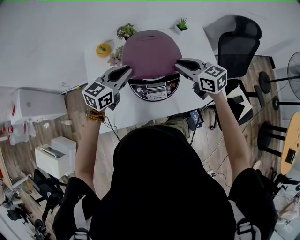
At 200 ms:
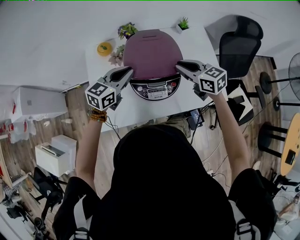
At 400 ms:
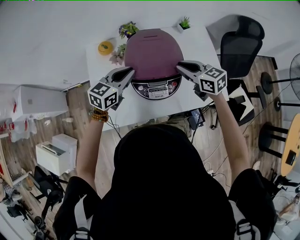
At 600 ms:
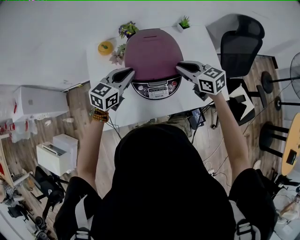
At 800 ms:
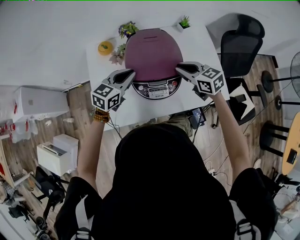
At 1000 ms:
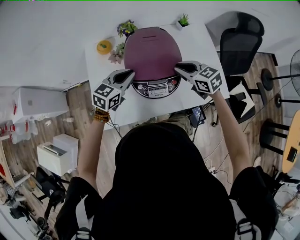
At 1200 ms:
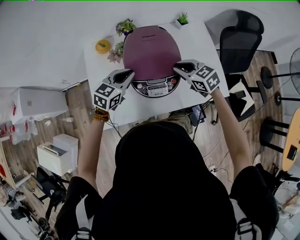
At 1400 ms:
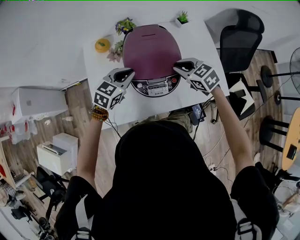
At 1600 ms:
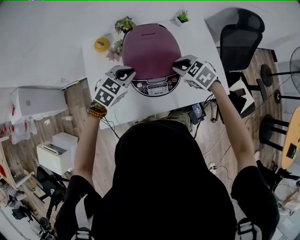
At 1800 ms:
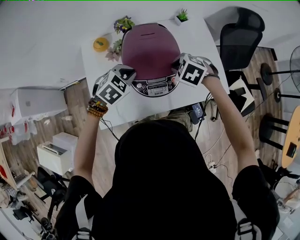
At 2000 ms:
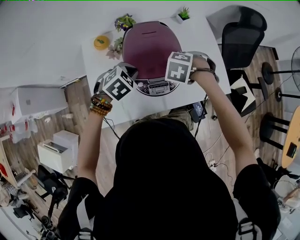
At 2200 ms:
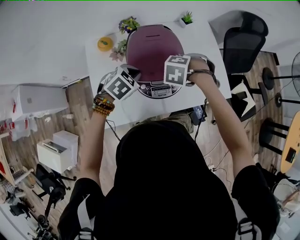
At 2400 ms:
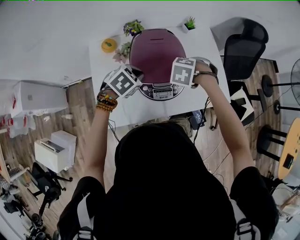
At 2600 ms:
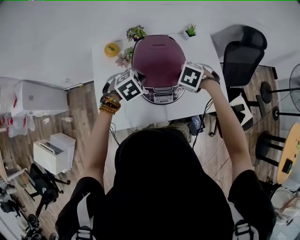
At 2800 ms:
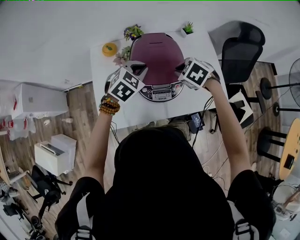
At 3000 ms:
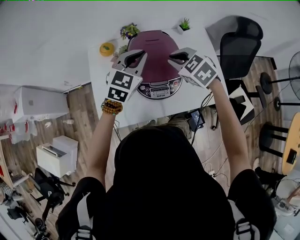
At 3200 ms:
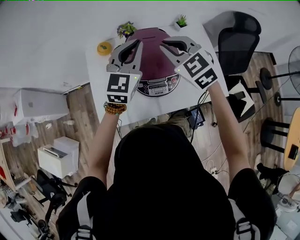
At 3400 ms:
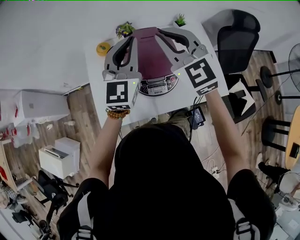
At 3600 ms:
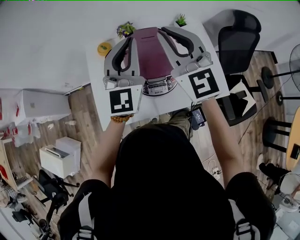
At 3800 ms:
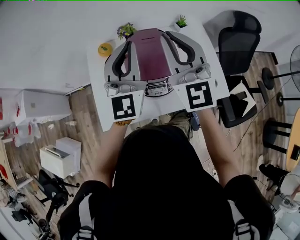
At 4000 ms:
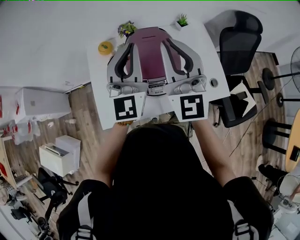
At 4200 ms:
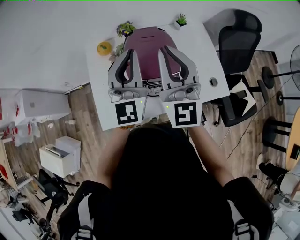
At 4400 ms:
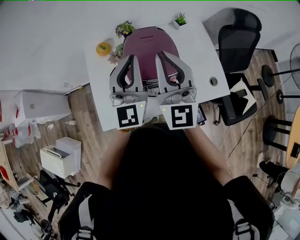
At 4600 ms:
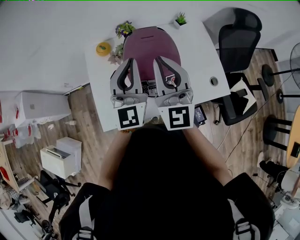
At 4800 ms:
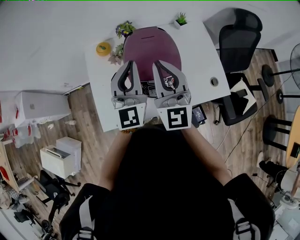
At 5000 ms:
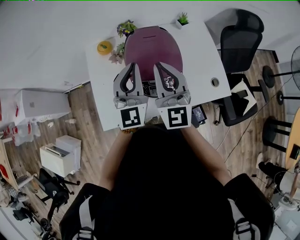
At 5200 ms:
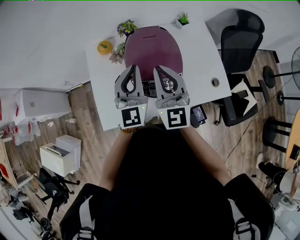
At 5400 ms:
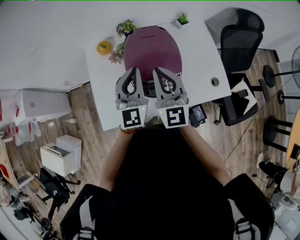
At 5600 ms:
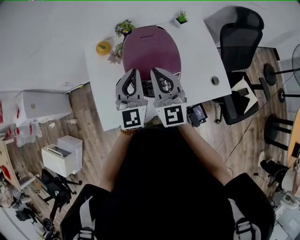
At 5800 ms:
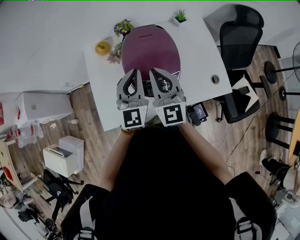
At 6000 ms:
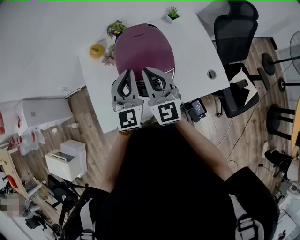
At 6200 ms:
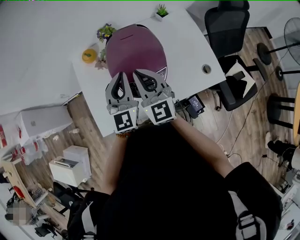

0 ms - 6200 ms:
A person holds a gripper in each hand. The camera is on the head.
0 ms - 1600 ms: The grippers both shift downward by approximately 5 cm. The right gripper rotates roughly 40 degrees. The left gripper rotates some 30 degrees.
1600 ms - 3200 ms: The two grippers go some 15 cm upward. The right gripper changes its angle by roughly 30 degrees. The left gripper tilts its fingers roughly 40 degrees upward.
3200 ms - 4600 ms: The left gripper travels backward by about 5 cm, moves about 10 cm upward and comes back, and rotates approximately 20 degrees. Meanwhile the right gripper is displaced backward and upward by approximately 10 cm, and tips its fingers upward by roughly 40 degrees.
4600 ms - 6200 ms: Both grippers move downward, about 10 cm.

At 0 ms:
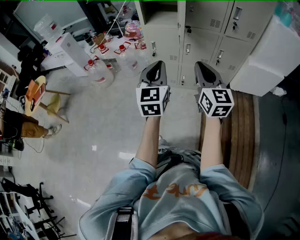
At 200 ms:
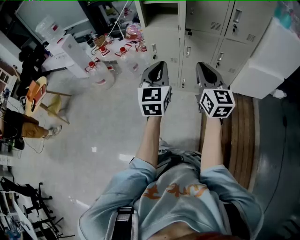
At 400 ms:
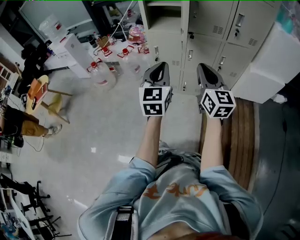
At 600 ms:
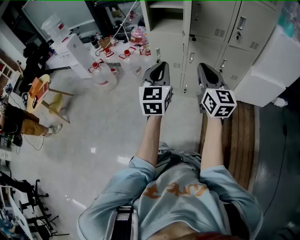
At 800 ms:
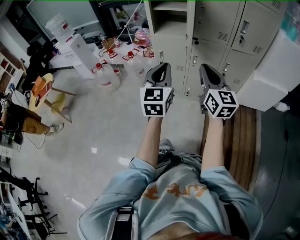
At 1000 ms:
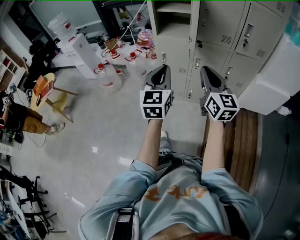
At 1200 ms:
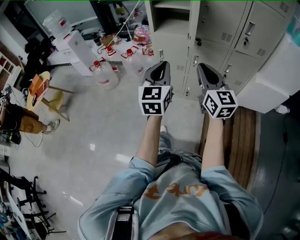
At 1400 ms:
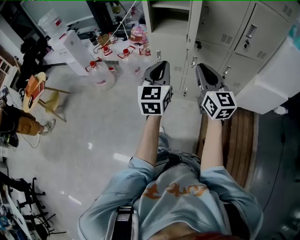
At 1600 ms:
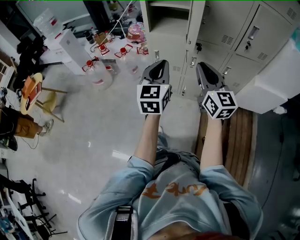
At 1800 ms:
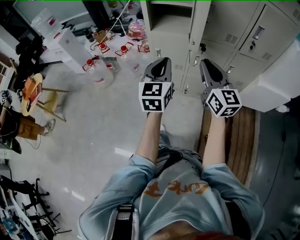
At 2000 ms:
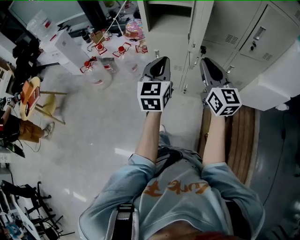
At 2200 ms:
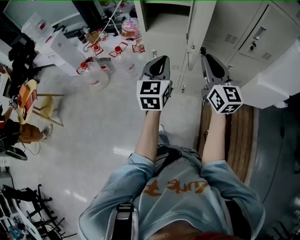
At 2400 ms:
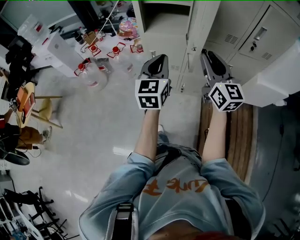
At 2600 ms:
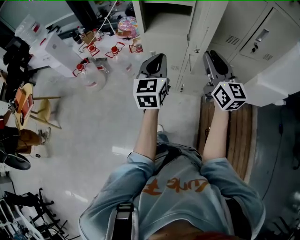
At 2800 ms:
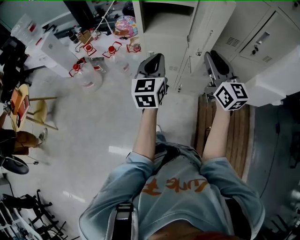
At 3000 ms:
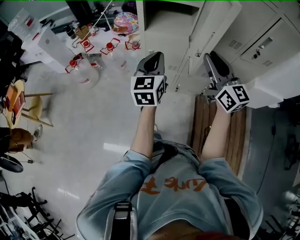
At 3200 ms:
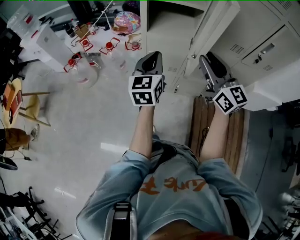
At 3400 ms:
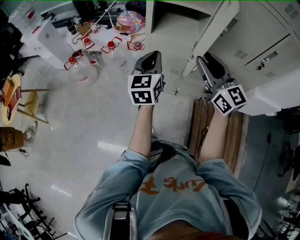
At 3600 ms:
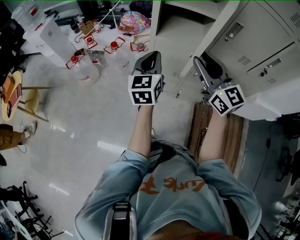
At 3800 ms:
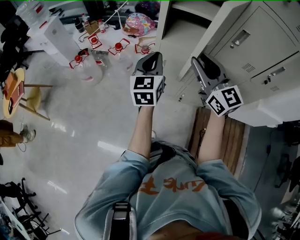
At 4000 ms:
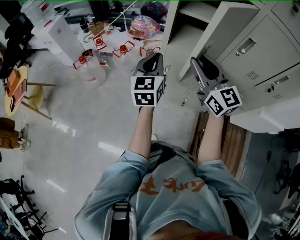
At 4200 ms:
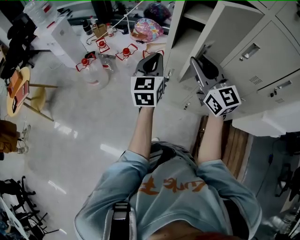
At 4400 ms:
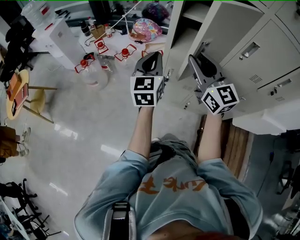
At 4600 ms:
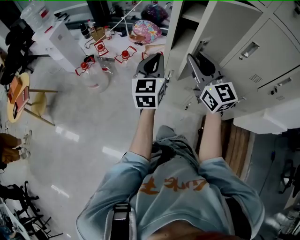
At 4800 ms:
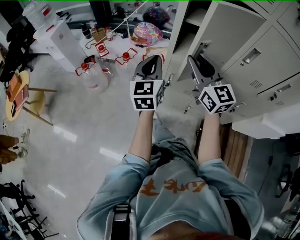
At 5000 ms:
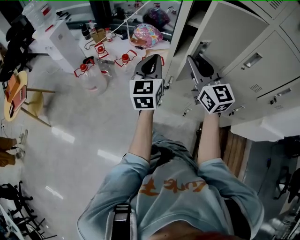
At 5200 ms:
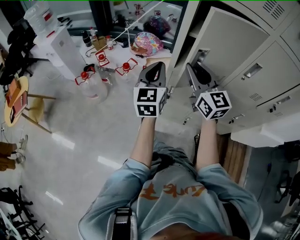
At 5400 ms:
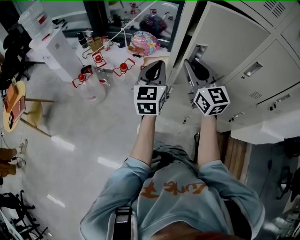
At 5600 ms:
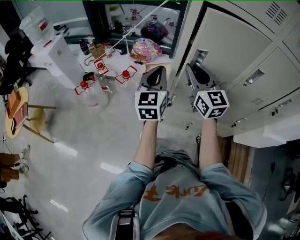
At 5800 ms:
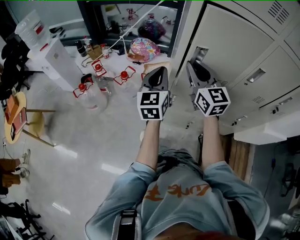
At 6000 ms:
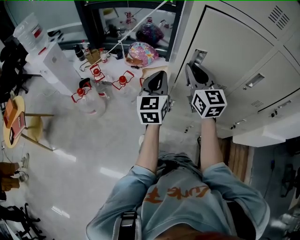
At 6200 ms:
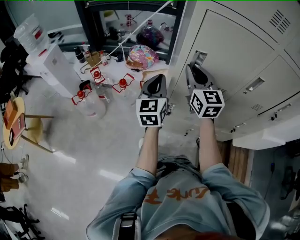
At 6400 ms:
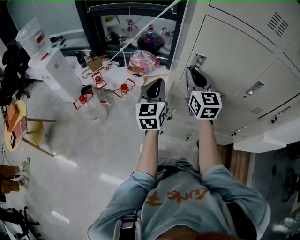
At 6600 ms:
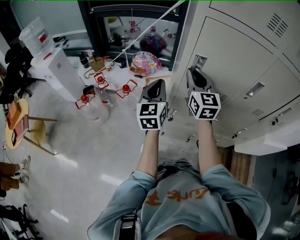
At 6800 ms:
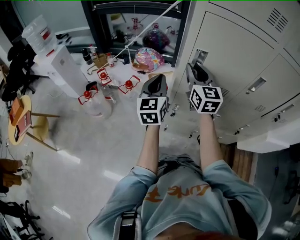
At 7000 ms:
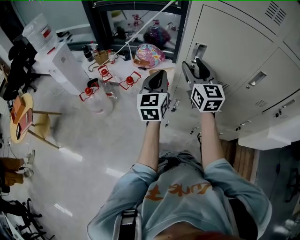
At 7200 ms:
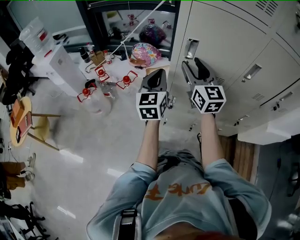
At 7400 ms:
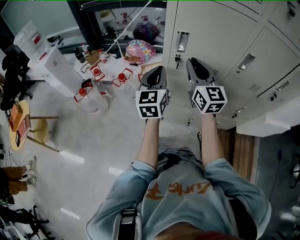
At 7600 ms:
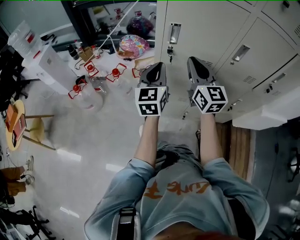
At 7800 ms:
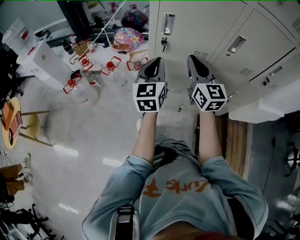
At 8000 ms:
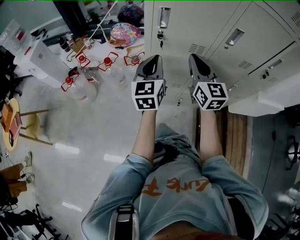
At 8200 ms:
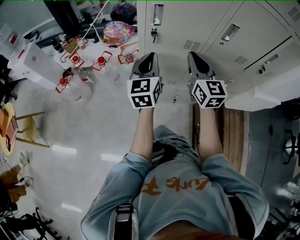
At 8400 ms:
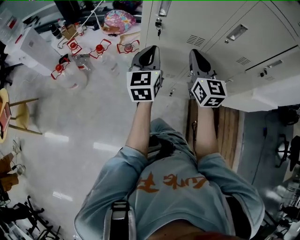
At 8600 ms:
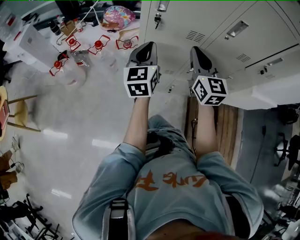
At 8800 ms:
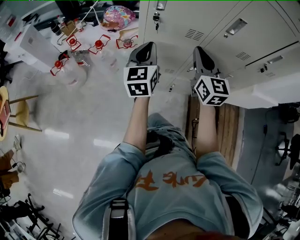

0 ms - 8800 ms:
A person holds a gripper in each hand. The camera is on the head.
0 ms - 1400 ms: Both grippers move forward, about 10 cm.
1400 ms - 3000 ms: Both grippers travel together forward, some 20 cm.
3000 ms - 4400 ms: The left gripper moves forward and to the left, roughly 15 cm. The right gripper goes some 20 cm to the left and forward.
4400 ms - 5800 ms: The grippers both shift forward by about 10 cm.
5800 ms - 7400 ms: The right gripper moves to the right, roughly 5 cm, and opens, then closes once more.
7400 ms - 8800 ms: The right gripper moves to the right, backward and downward, some 15 cm. The left gripper shifts some 10 cm to the right and downward.

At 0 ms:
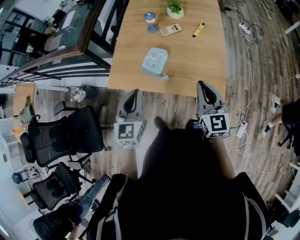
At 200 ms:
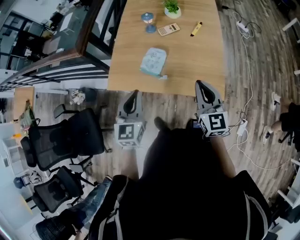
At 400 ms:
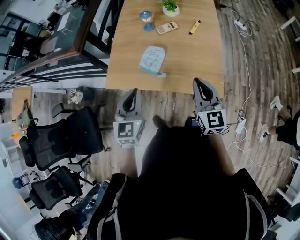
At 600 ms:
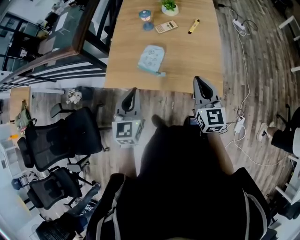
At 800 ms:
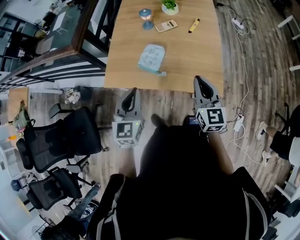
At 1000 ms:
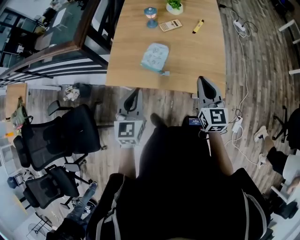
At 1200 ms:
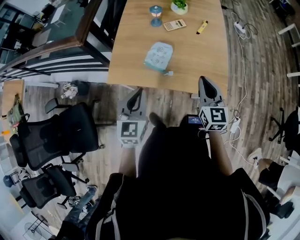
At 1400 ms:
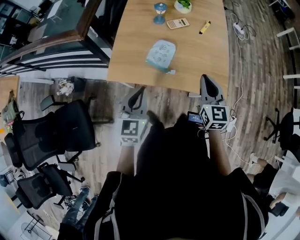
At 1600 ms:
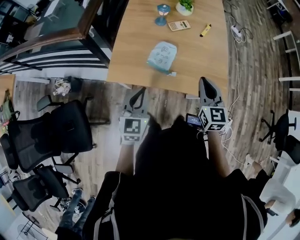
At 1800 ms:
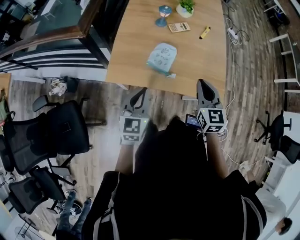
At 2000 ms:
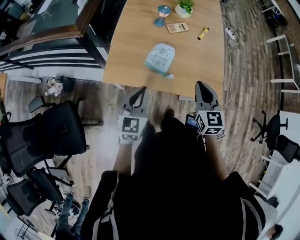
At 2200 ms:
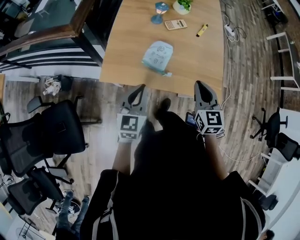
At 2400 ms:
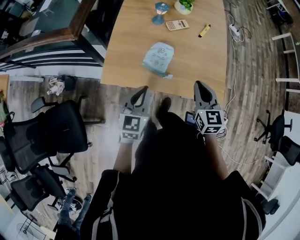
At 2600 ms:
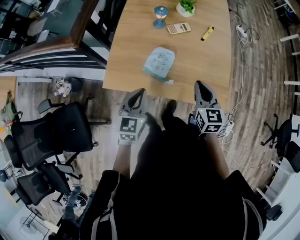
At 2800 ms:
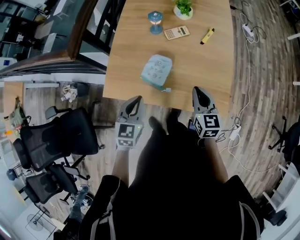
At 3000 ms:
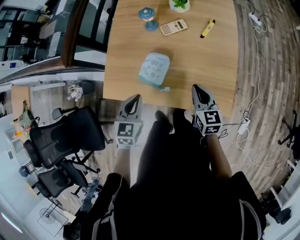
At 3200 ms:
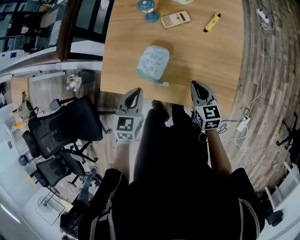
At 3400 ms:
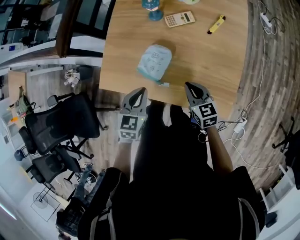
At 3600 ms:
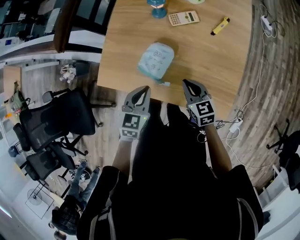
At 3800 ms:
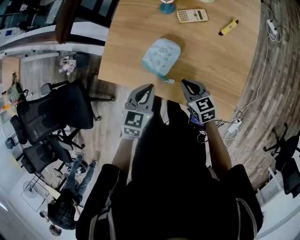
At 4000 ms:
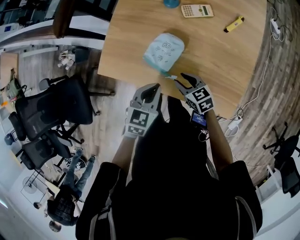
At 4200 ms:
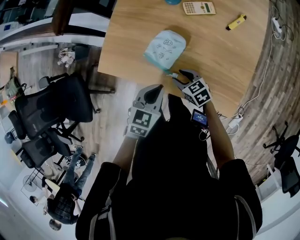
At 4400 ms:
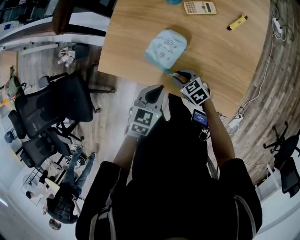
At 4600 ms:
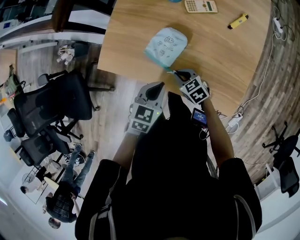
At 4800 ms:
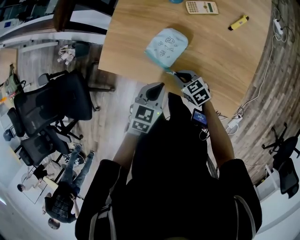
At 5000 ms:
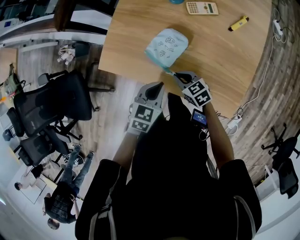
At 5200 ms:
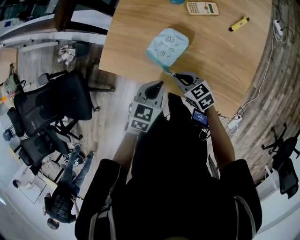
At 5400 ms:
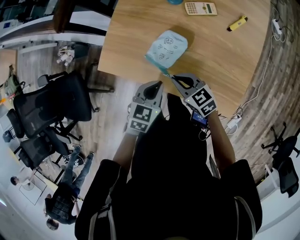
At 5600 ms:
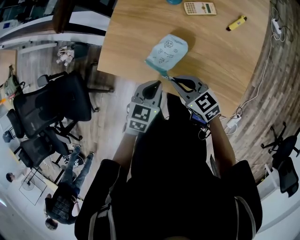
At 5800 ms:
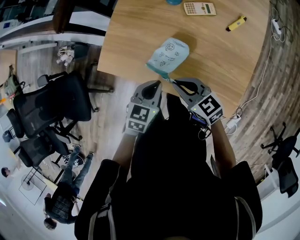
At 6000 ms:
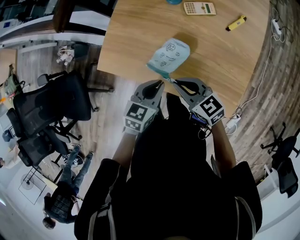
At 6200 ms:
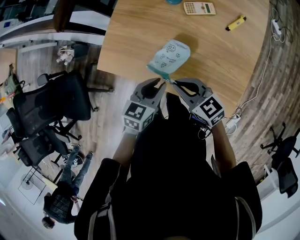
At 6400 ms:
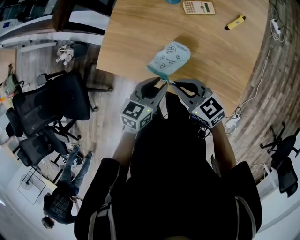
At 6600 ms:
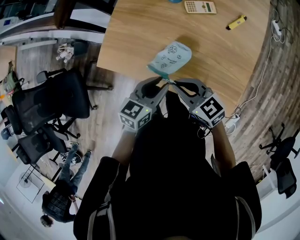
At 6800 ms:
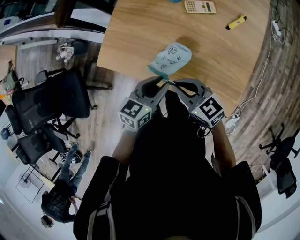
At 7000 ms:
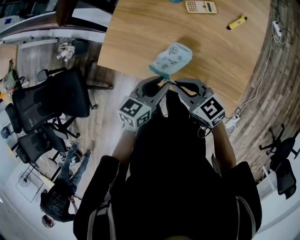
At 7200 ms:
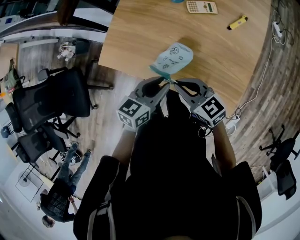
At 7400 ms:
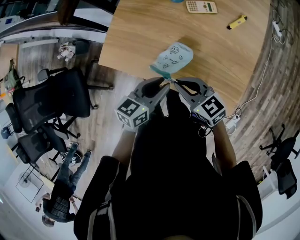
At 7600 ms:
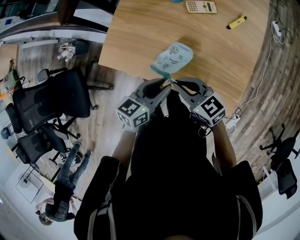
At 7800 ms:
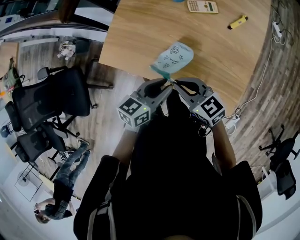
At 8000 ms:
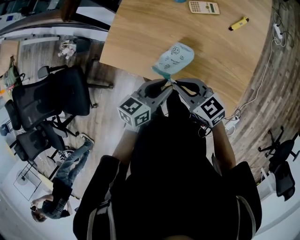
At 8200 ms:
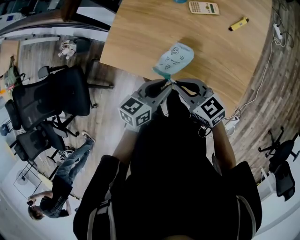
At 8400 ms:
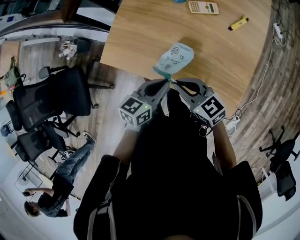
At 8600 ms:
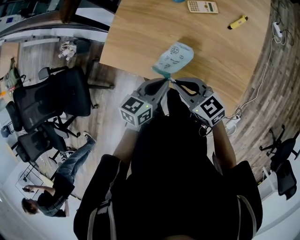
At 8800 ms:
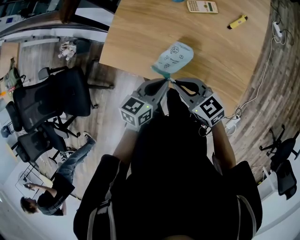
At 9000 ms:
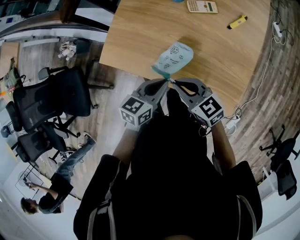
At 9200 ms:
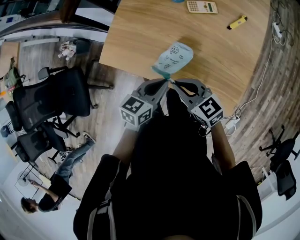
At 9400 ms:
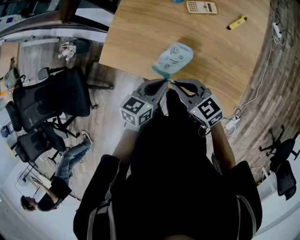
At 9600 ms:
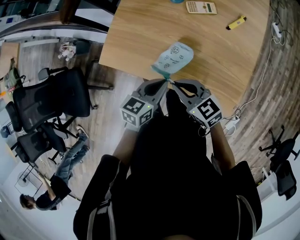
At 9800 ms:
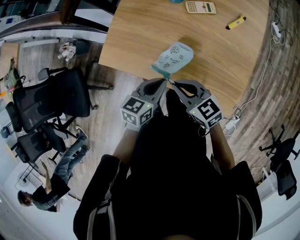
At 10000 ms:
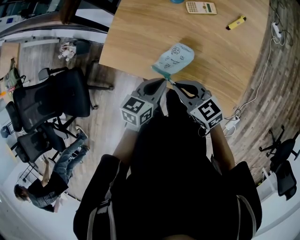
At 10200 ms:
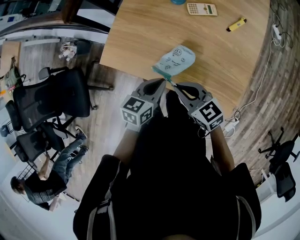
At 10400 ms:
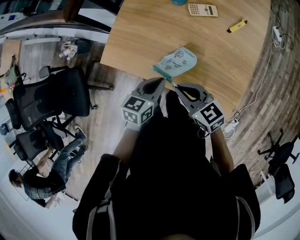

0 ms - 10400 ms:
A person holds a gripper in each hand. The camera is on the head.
0 ms - 1400 ms: Both grippers travel together to the left, about 5 cm.
1400 ms - 3000 ms: The right gripper goes about 15 cm downward and forward, and changes its angle by roughly 20 degrees; the left gripper goes about 15 cm forward and downward.
3000 ms - 4400 ms: The right gripper travels downward and to the left by some 25 cm, swivels approximately 50 degrees, and opens; the left gripper is displaced downward by some 10 cm.
4400 ms - 6000 ms: The right gripper moves upward, approximately 15 cm, changes its angle by roughly 20 degrees, and closes up.
6000 ms - 7400 ms: The left gripper opens its fingers.
7400 ms - 9000 ms: The left gripper closes its fingers.
9000 ms - 10400 ms: The grippers make only small movements.
